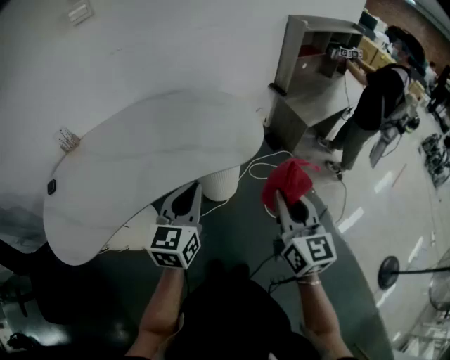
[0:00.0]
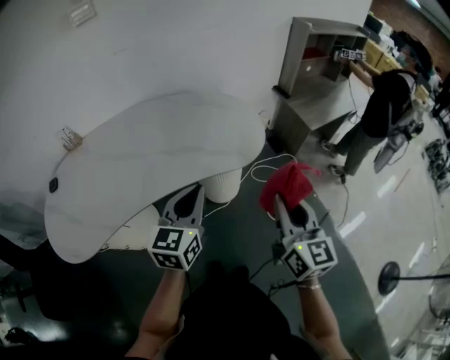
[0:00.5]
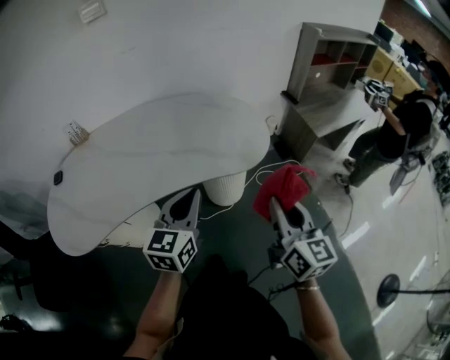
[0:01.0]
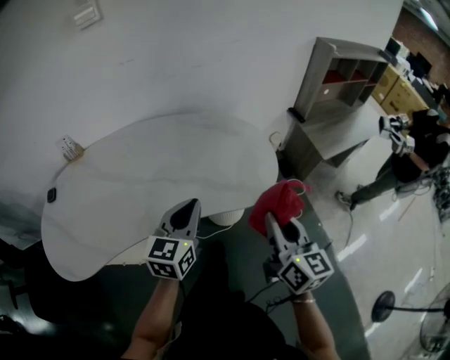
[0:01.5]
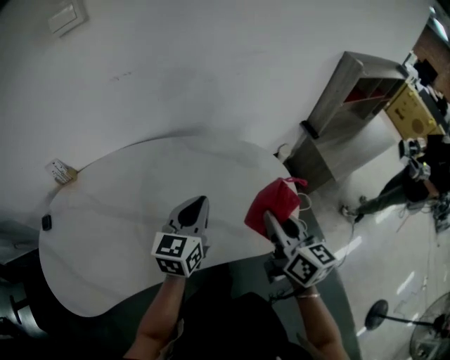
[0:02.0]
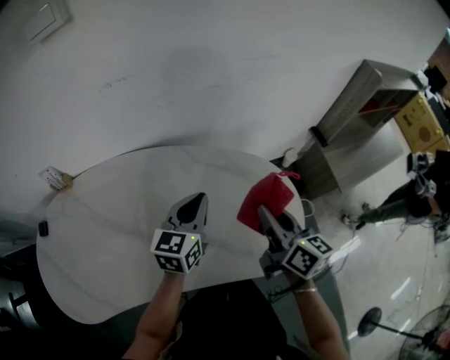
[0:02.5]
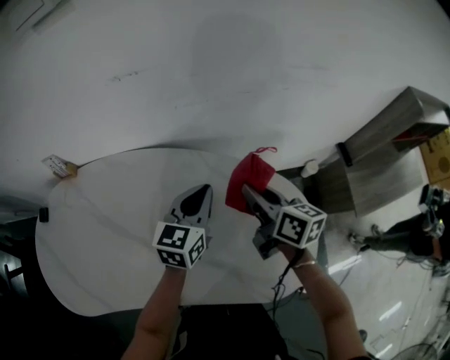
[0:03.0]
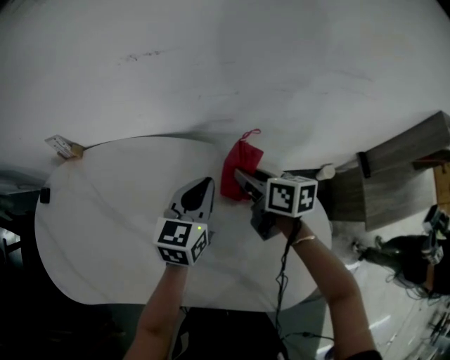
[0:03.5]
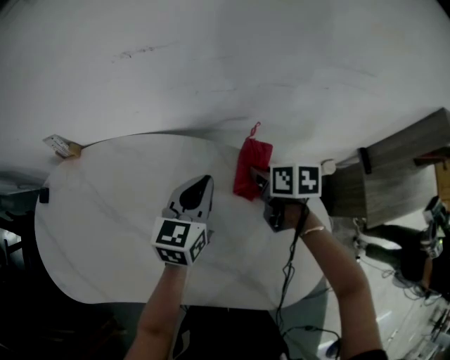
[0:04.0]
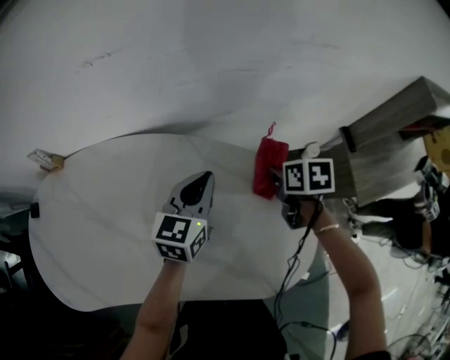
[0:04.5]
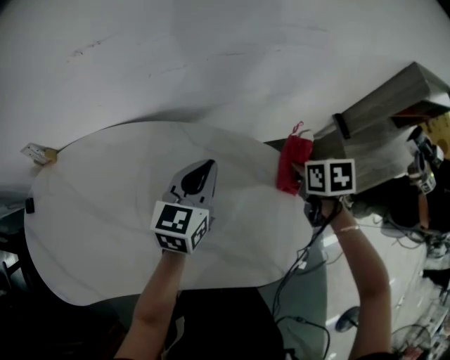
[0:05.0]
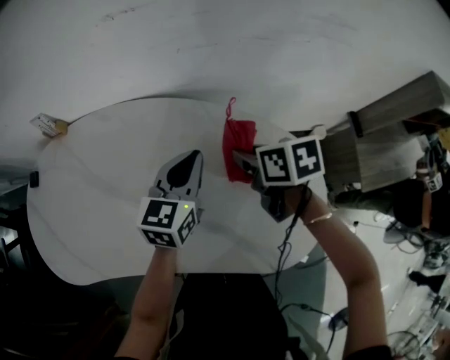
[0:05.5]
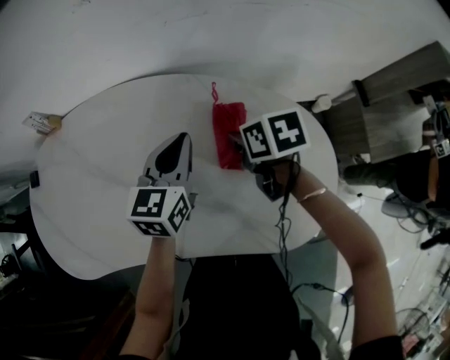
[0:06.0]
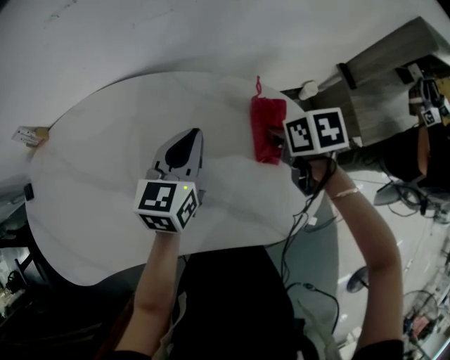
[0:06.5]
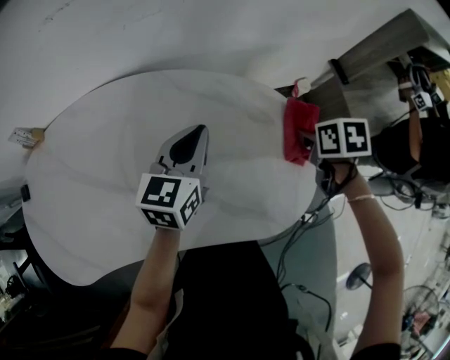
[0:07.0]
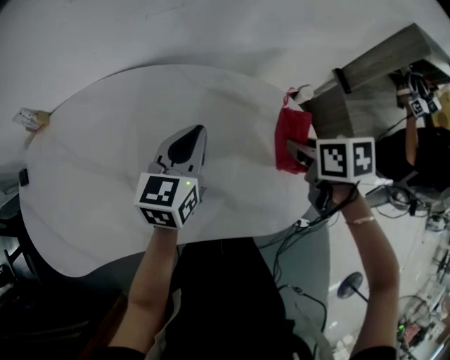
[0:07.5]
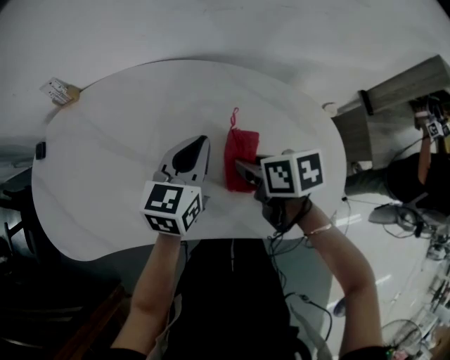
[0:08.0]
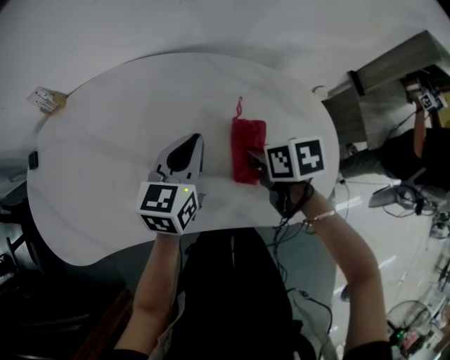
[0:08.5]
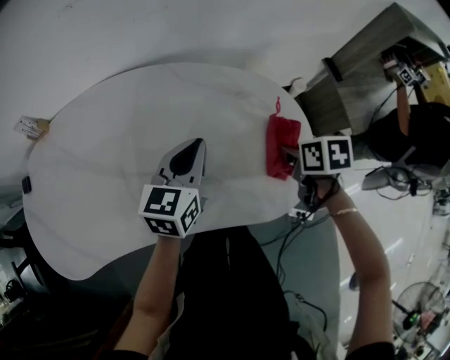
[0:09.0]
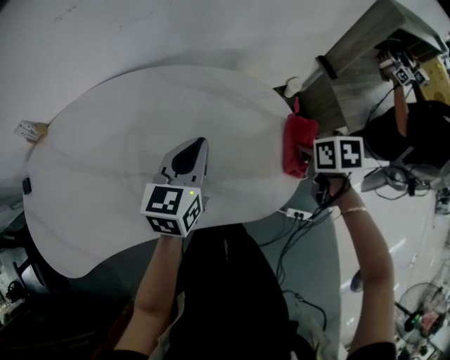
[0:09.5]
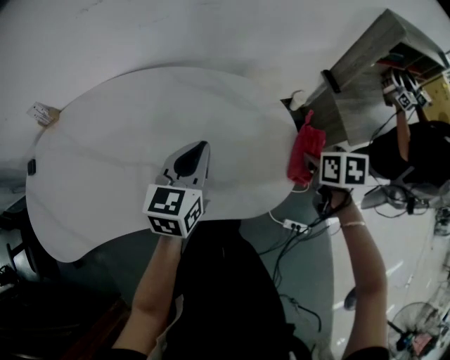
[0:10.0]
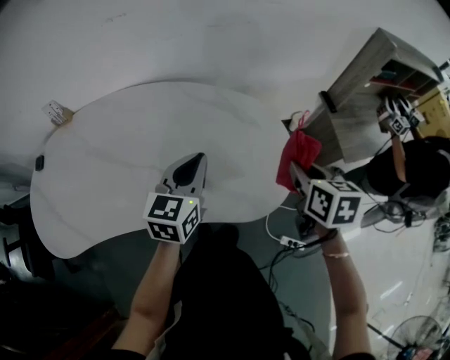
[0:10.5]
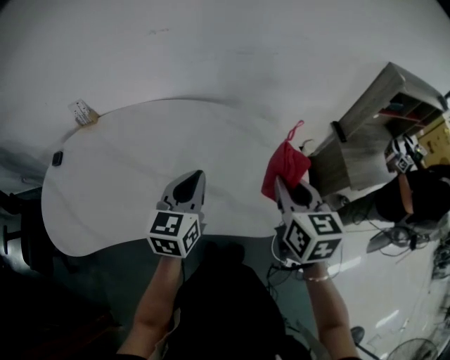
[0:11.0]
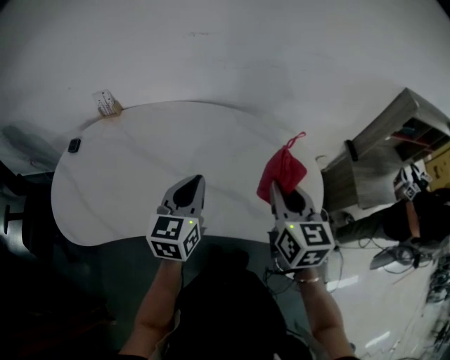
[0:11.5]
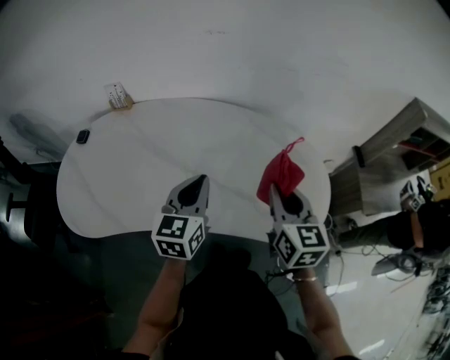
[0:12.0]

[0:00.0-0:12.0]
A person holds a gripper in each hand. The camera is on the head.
0:00.0 to 0:02.0: The two grippers go about 25 cm forward. The right gripper changes its angle by about 30 degrees.
0:02.0 to 0:04.0: The right gripper ends up some 40 cm from where it was, and tilts its fingers approximately 30 degrees downward, while the left gripper ends up about 20 cm from where it was.
0:04.0 to 0:06.0: The left gripper is displaced backward by roughly 5 cm, and moves roughly 10 cm to the right and comes back; the right gripper goes roughly 10 cm backward, and goes to the right and returns, some 20 cm each way.
0:06.0 to 0:08.0: The left gripper is displaced backward by about 5 cm, and goes to the right and returns, about 10 cm each way. Meanwhile the right gripper travels backward by roughly 10 cm, and reaches roughly 25 cm to the right, then returns.
0:08.0 to 0:10.0: The right gripper ends up roughly 35 cm from where it was, and rotates roughly 30 degrees. The left gripper changes place by some 15 cm.
0:10.0 to 0:12.0: The left gripper goes about 20 cm to the left, and rotates some 20 degrees; the right gripper goes about 30 cm to the left and upward, and tips its fingers upward by approximately 40 degrees.

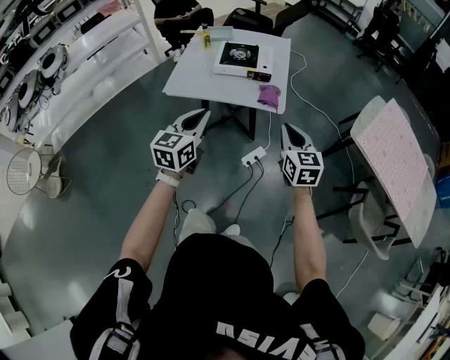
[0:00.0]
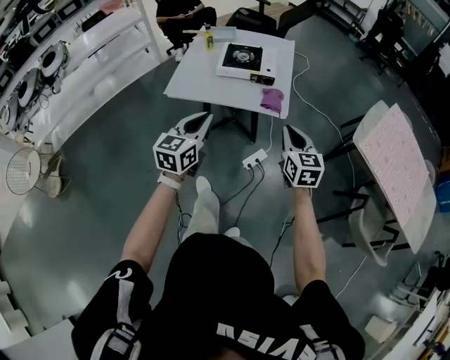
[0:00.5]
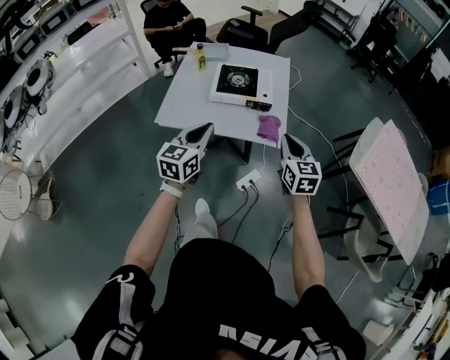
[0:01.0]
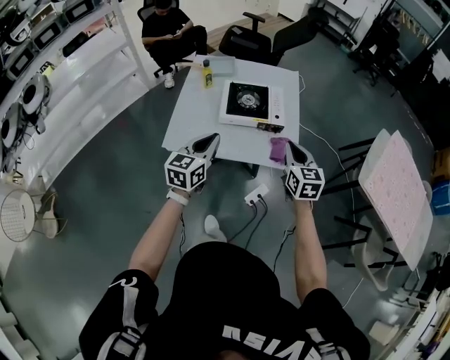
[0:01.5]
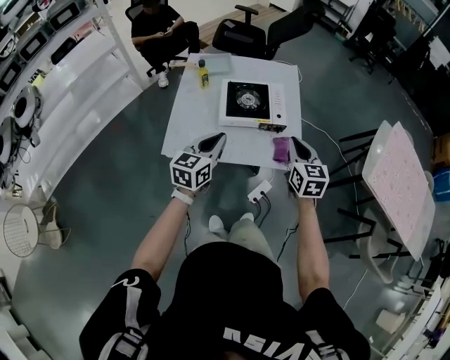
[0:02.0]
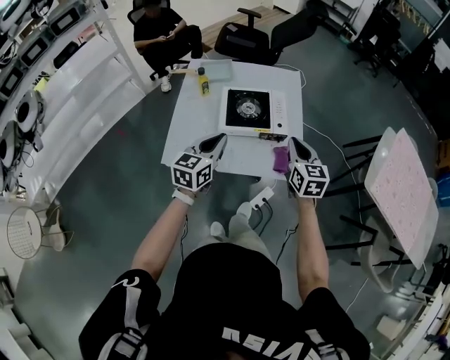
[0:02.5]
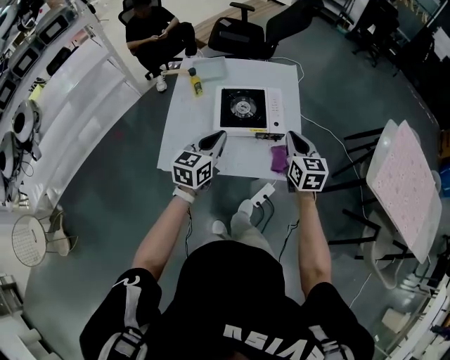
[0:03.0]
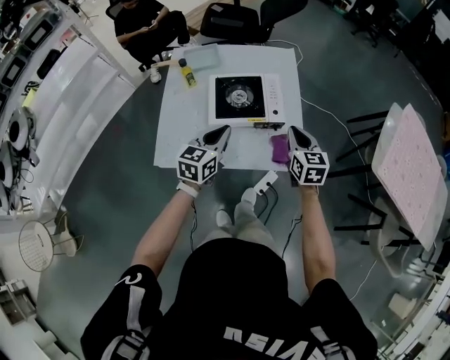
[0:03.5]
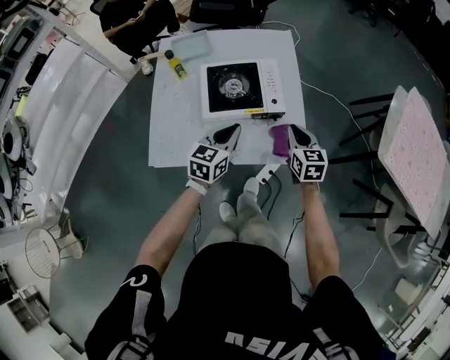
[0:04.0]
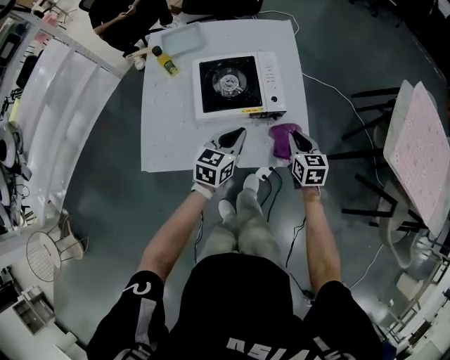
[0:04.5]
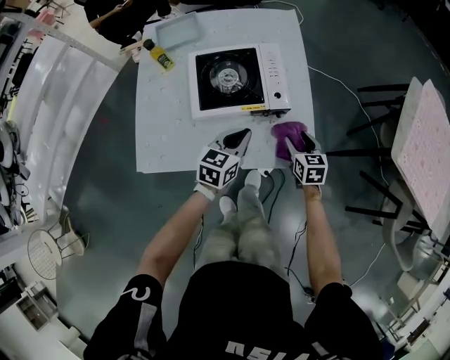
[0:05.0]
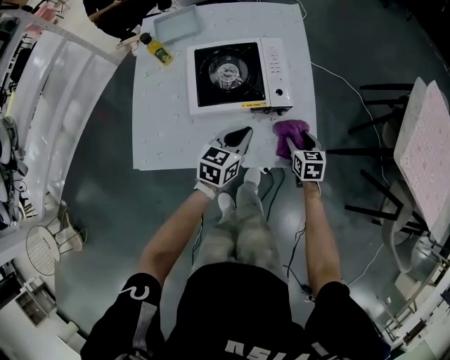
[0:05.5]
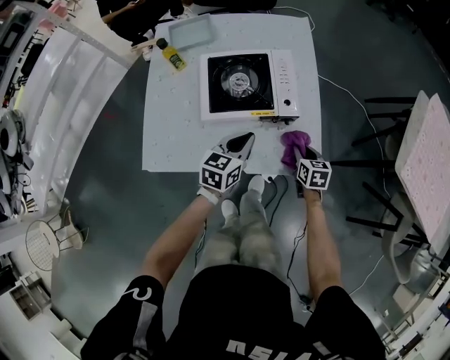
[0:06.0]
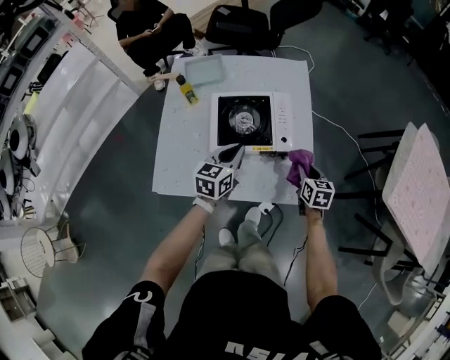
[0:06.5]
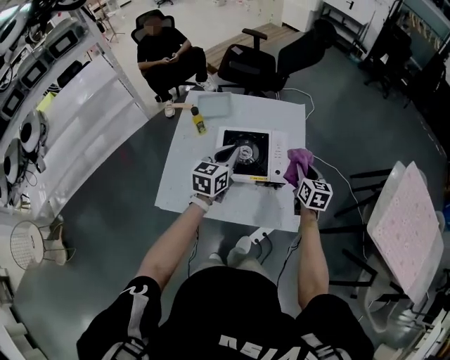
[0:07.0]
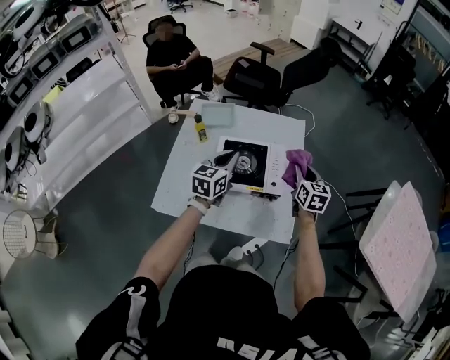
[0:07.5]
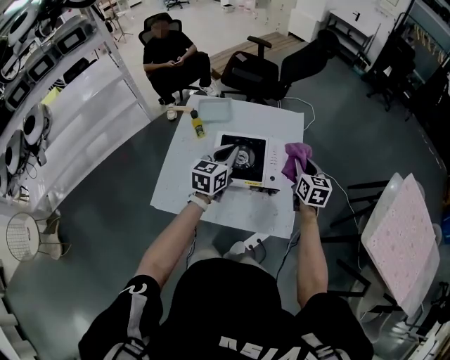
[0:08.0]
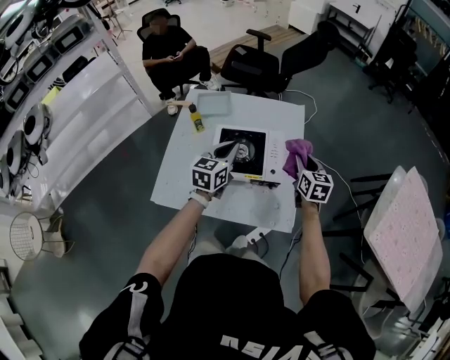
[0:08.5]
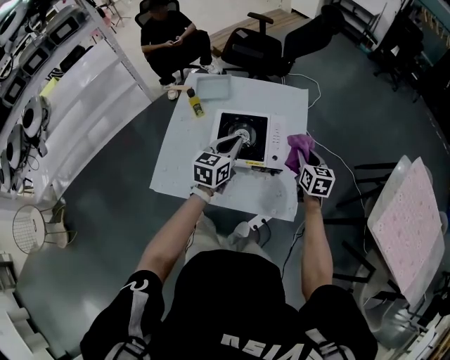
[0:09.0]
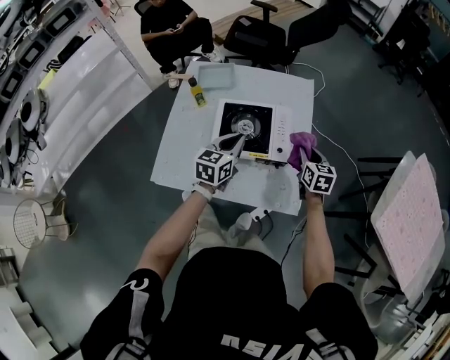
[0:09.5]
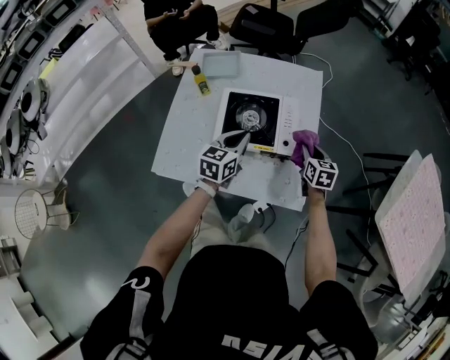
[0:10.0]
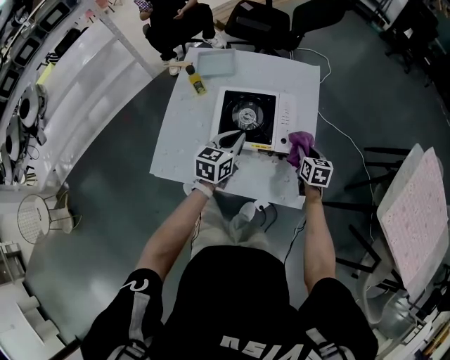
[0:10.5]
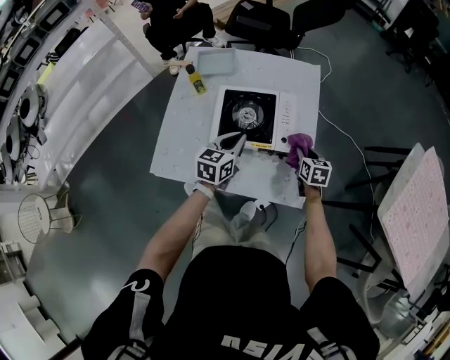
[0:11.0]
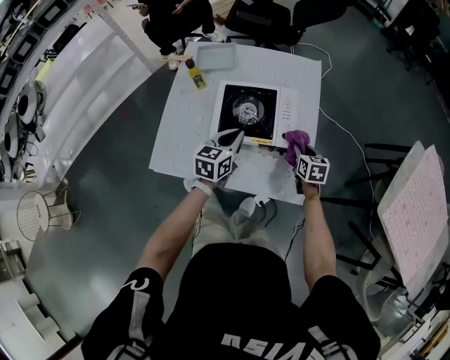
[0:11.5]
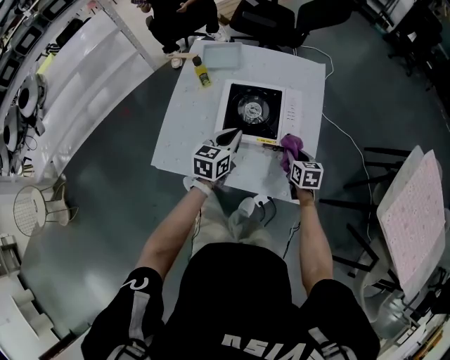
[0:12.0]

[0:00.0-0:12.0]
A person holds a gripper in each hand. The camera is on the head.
0:00.0 to 0:02.0: The right gripper is displaced forward and to the left by roughly 35 cm; the left gripper travels forward by about 30 cm.
0:02.0 to 0:04.0: The left gripper moves forward, downward and to the right, roughly 20 cm; the right gripper shifts some 20 cm downward and forward.
0:04.0 to 0:06.0: The right gripper heads downward, covering about 20 cm, and opens and closes again. The left gripper travels downward by some 10 cm.
0:06.0 to 0:08.0: The two grippers go approximately 30 cm upward and forward. The right gripper changes its angle by roughly 30 degrees.
0:08.0 to 0:10.0: Both grippers travel together downward, about 10 cm.
0:10.0 to 0:12.0: The right gripper is displaced downward, to the left and backward by about 10 cm.

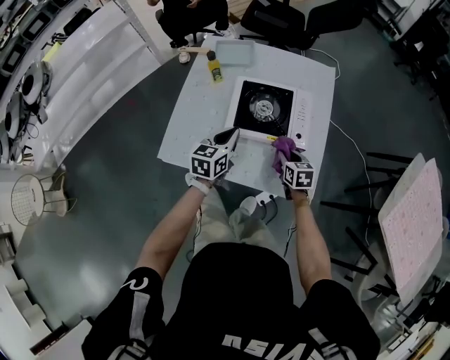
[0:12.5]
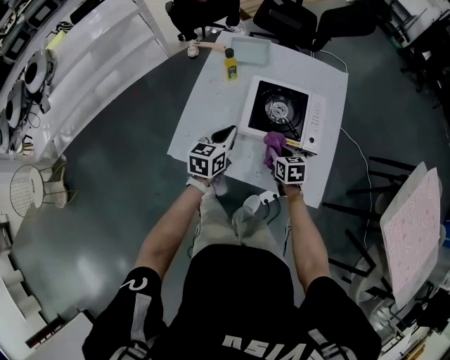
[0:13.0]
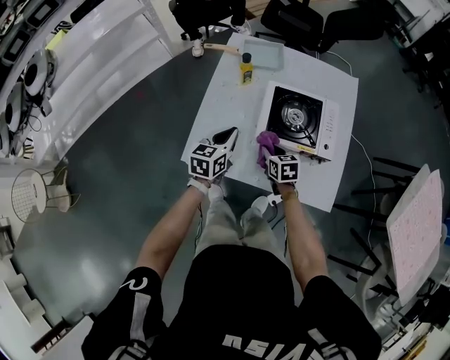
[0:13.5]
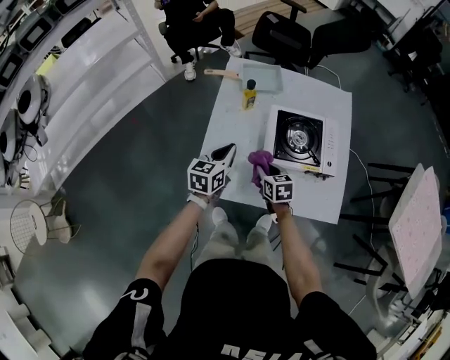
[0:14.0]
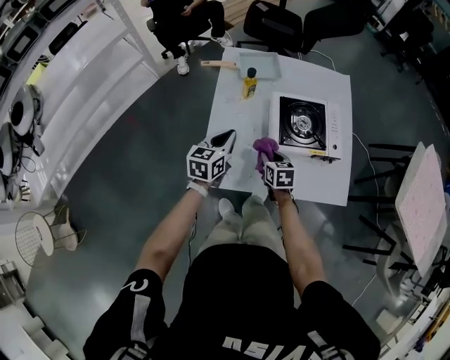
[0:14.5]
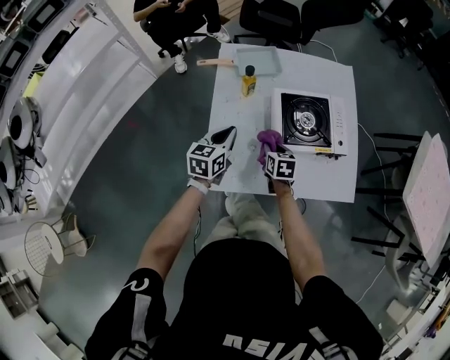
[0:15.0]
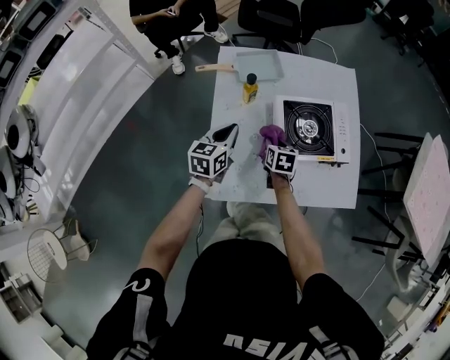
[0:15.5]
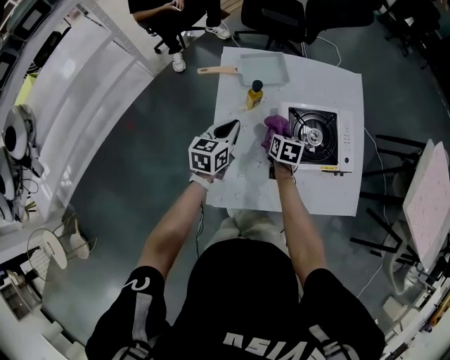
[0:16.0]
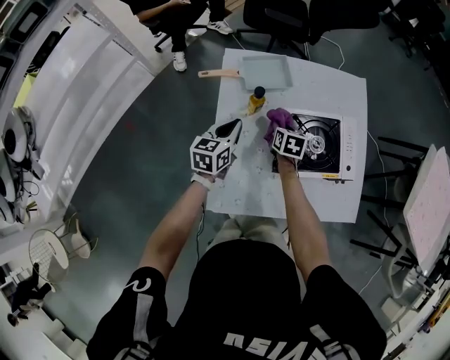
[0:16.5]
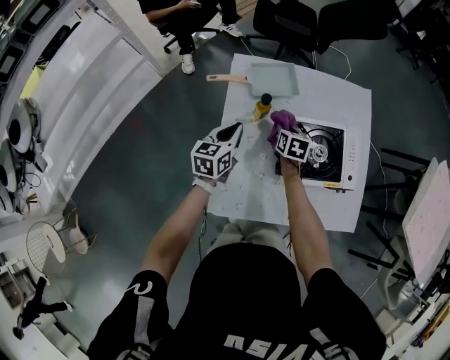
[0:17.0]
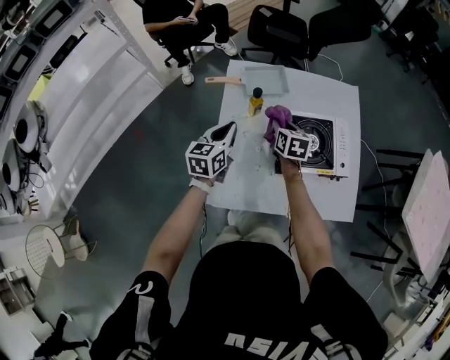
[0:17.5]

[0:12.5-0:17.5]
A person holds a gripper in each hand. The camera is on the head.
0:12.5 to 0:15.0: The two grippers go roughly 25 cm to the left.
0:15.0 to 0:17.5: The right gripper moves forward and upward, some 20 cm. Meanwhile the left gripper shifts roughly 5 cm forward.
